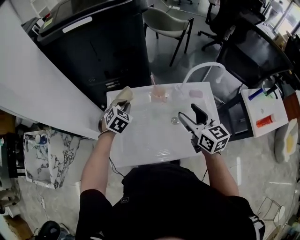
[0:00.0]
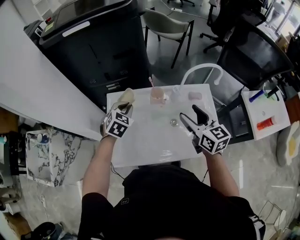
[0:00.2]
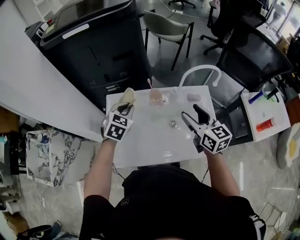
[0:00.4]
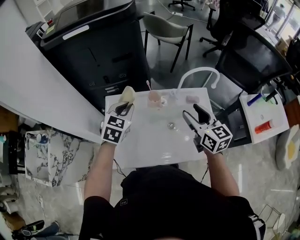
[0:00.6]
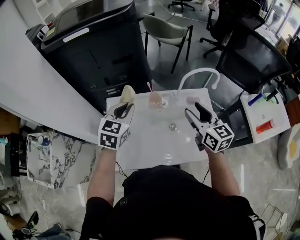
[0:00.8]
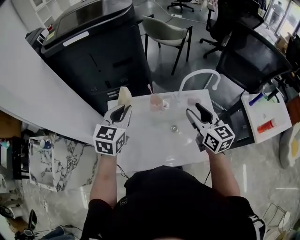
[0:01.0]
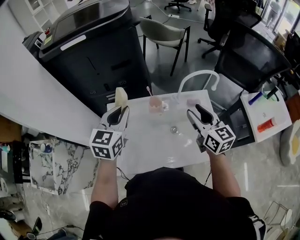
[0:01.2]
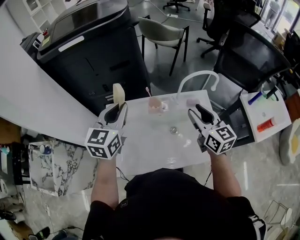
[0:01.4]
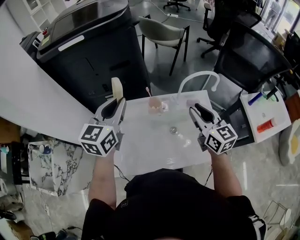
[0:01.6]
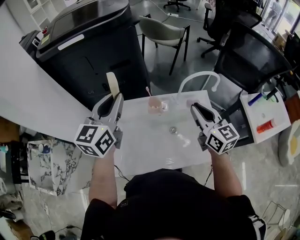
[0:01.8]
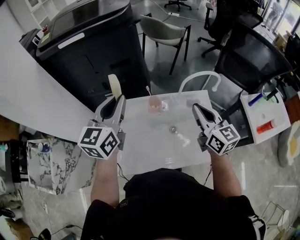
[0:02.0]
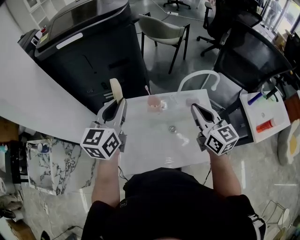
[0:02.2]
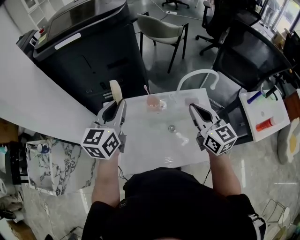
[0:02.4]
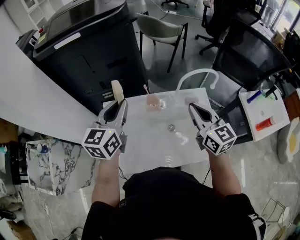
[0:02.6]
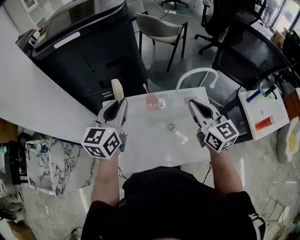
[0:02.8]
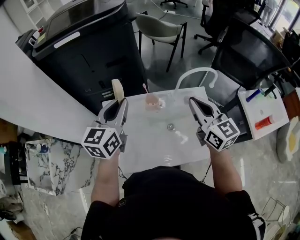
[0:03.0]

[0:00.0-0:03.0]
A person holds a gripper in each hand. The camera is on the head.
0:00.0 to 0:01.6: The right gripper goes some 5 cm to the right, and closes up, while the left gripper is displaced upward by roughly 25 cm, and points its fingers some 40 degrees further upward.
0:01.6 to 0:03.0: The right gripper closes up.

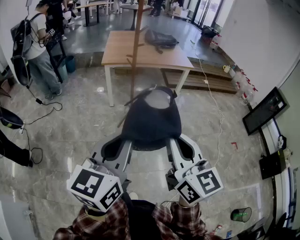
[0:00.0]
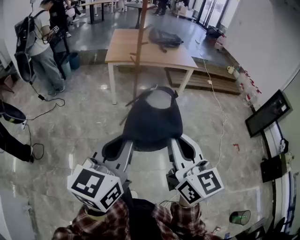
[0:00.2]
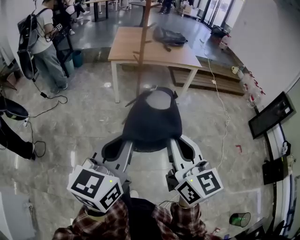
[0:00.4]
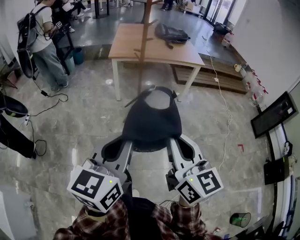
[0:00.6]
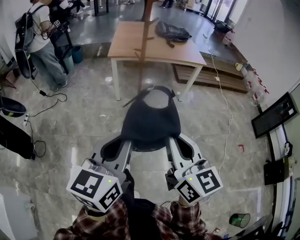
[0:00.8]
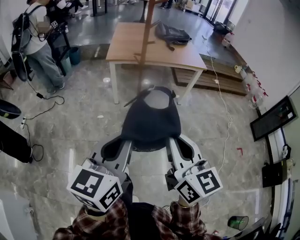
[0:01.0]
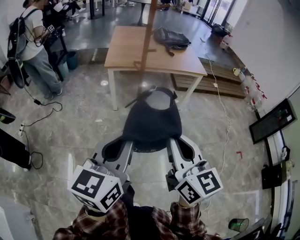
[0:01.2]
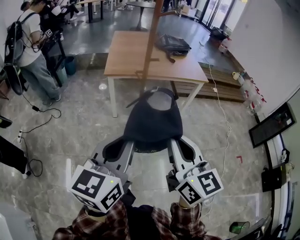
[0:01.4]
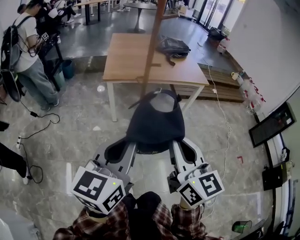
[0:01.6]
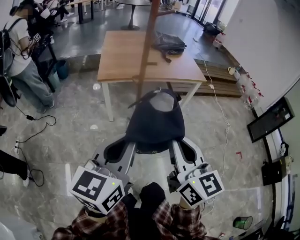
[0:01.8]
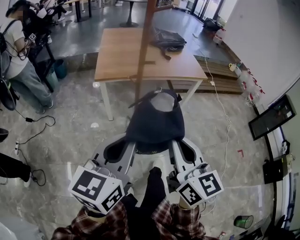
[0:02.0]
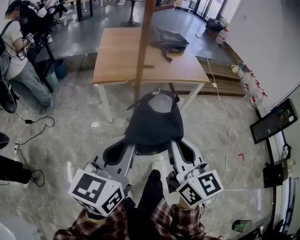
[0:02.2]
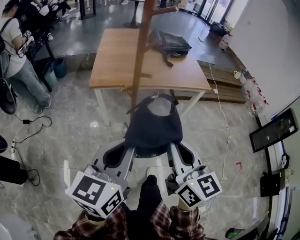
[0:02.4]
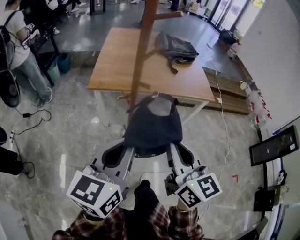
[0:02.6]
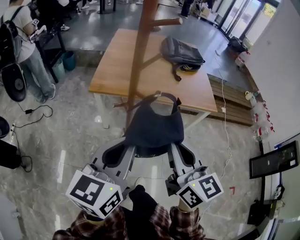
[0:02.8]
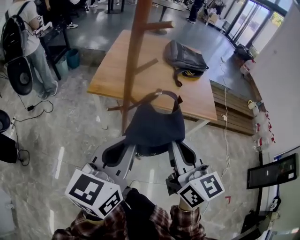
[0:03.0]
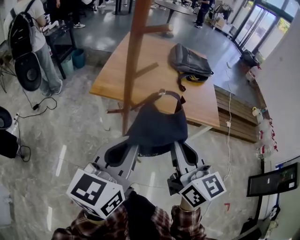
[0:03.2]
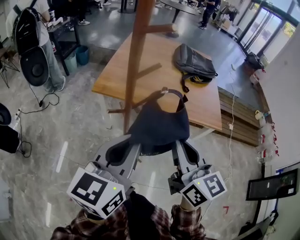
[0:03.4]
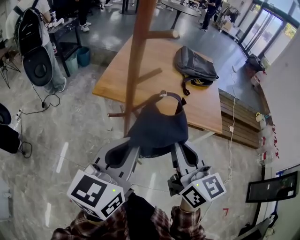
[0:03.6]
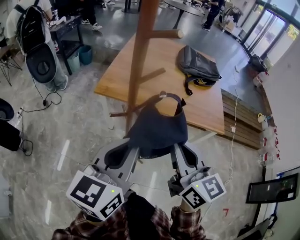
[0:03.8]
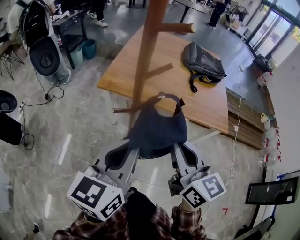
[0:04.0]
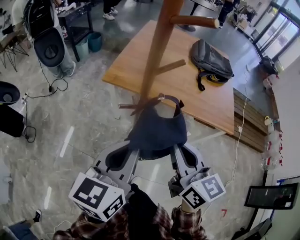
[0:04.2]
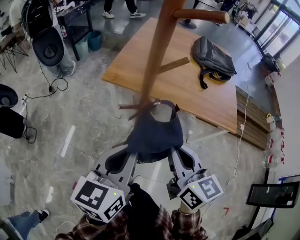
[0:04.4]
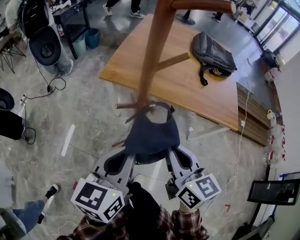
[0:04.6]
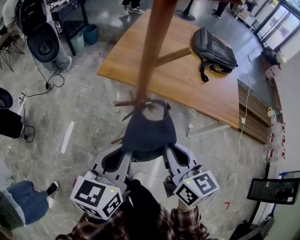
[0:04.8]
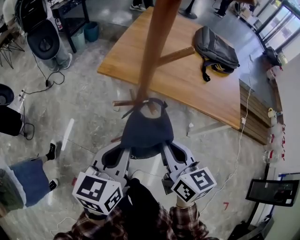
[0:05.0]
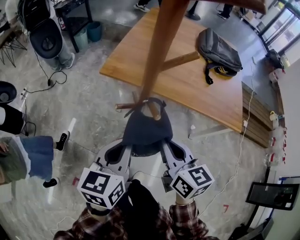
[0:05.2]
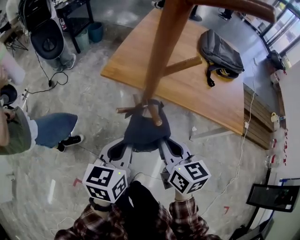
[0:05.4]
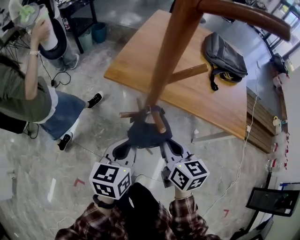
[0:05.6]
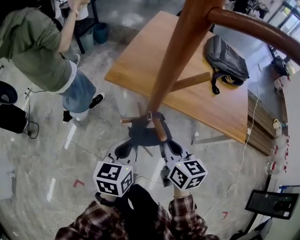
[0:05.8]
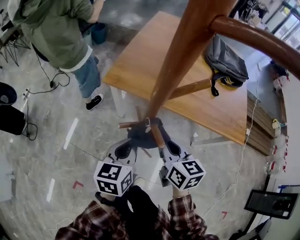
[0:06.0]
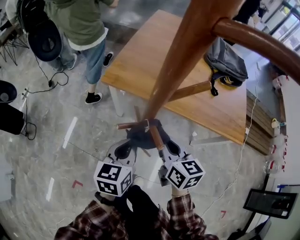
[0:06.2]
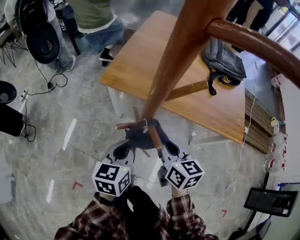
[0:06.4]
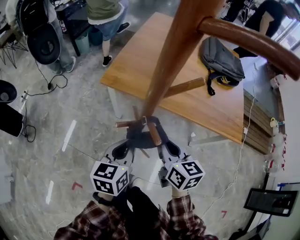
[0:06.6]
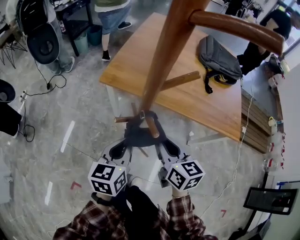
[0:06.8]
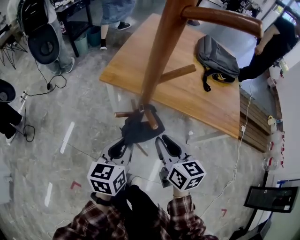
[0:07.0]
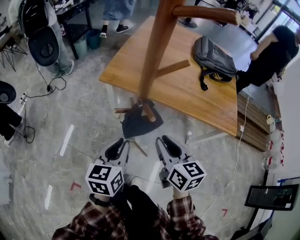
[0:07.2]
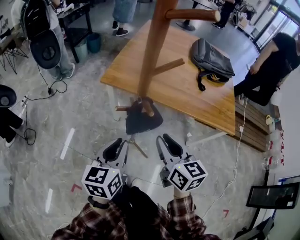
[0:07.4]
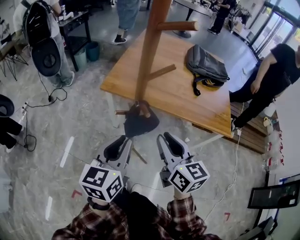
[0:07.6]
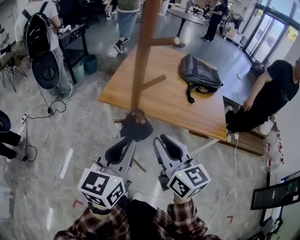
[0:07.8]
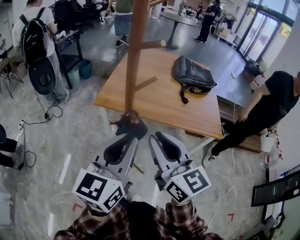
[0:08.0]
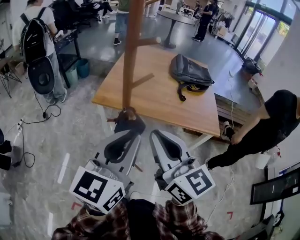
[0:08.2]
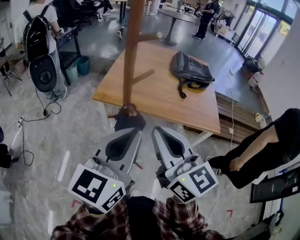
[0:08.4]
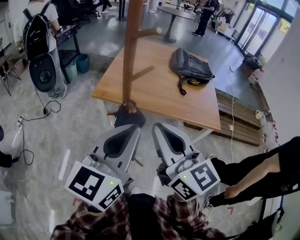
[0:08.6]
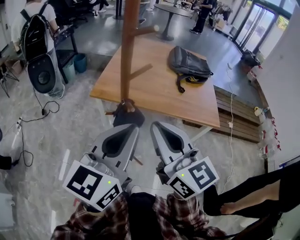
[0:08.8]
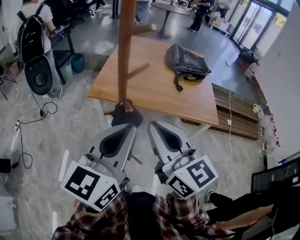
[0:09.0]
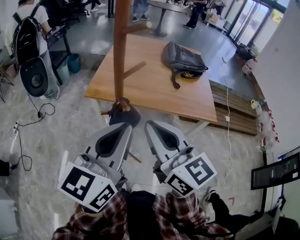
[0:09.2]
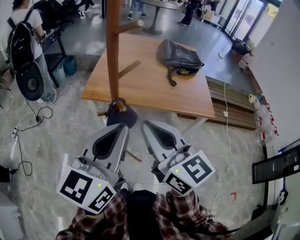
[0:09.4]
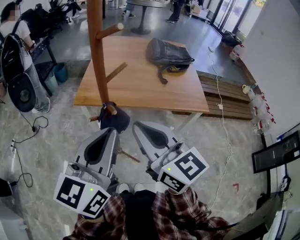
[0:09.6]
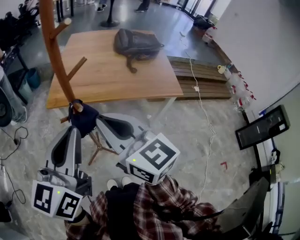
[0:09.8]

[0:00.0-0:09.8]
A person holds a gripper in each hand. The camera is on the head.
0:00.0 to 0:01.4: Both grippers move forward, approximately 25 cm.
0:01.4 to 0:02.8: Both grippers travel together forward, roughly 30 cm.
0:02.8 to 0:04.2: The right gripper moves forward, about 10 cm; the left gripper goes about 5 cm forward.
0:04.2 to 0:05.6: Both grippers move downward and forward, about 20 cm.
0:05.6 to 0:07.0: The grippers make only small movements.
0:07.0 to 0:08.4: Both grippers travel together upward and backward, roughly 25 cm. The right gripper turns by some 30 degrees, while the left gripper swivels about 30 degrees.
0:08.4 to 0:09.8: The left gripper moves to the left, approximately 5 cm.

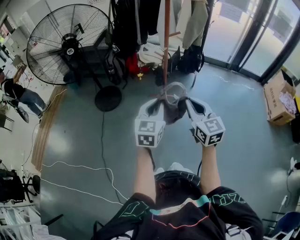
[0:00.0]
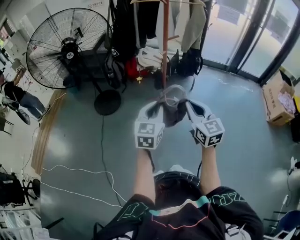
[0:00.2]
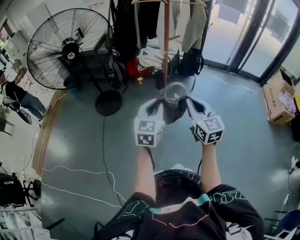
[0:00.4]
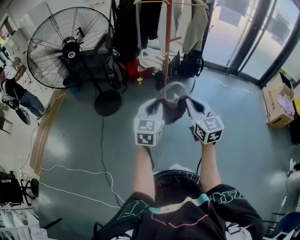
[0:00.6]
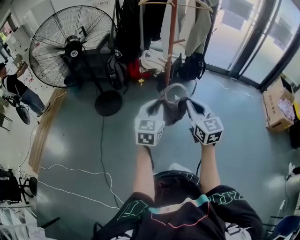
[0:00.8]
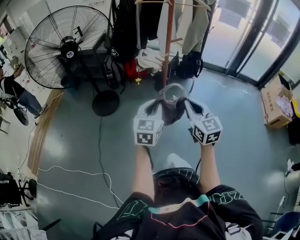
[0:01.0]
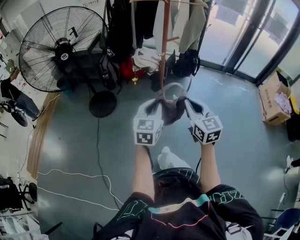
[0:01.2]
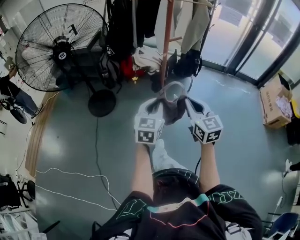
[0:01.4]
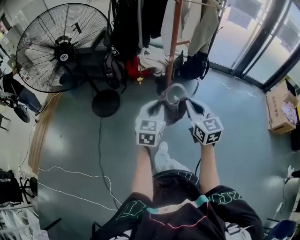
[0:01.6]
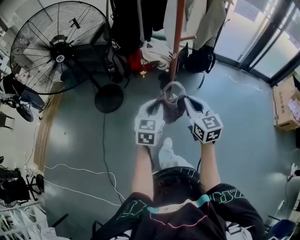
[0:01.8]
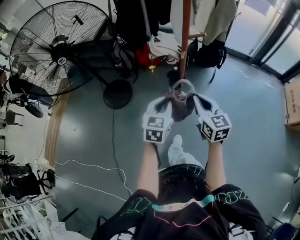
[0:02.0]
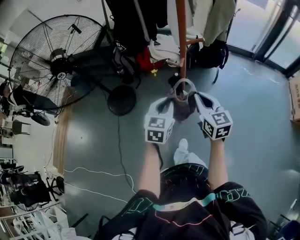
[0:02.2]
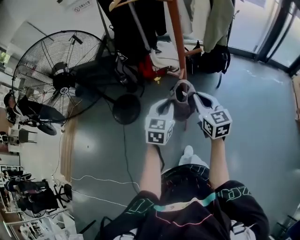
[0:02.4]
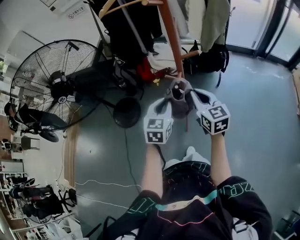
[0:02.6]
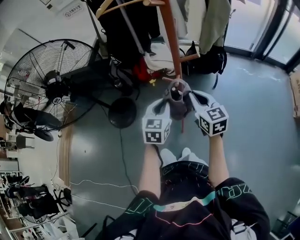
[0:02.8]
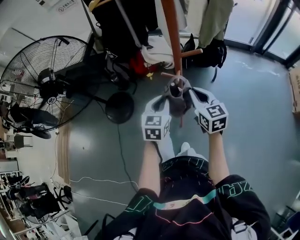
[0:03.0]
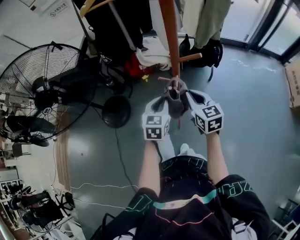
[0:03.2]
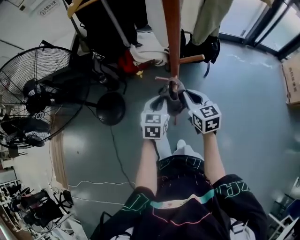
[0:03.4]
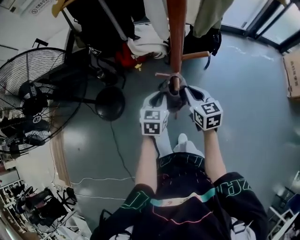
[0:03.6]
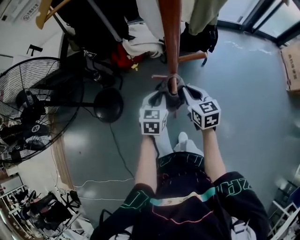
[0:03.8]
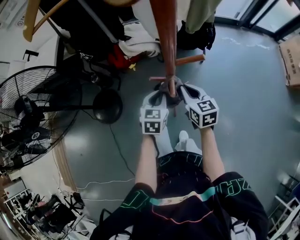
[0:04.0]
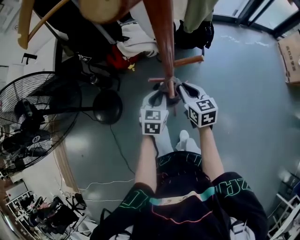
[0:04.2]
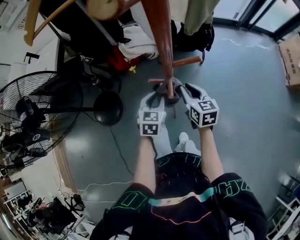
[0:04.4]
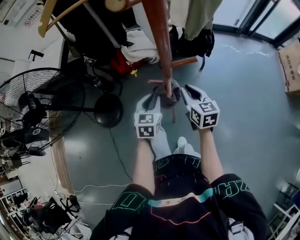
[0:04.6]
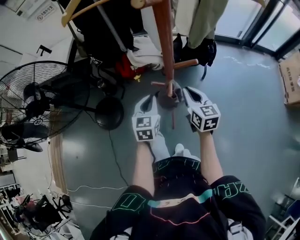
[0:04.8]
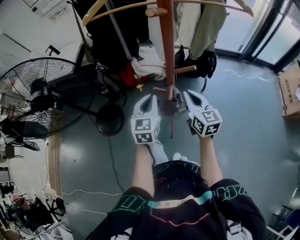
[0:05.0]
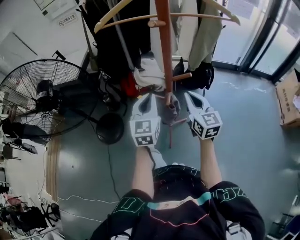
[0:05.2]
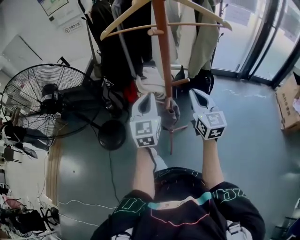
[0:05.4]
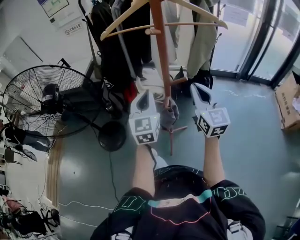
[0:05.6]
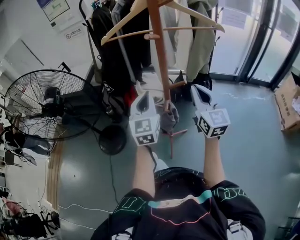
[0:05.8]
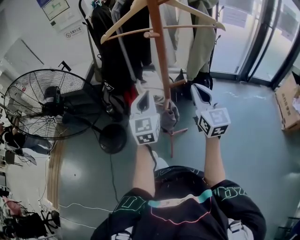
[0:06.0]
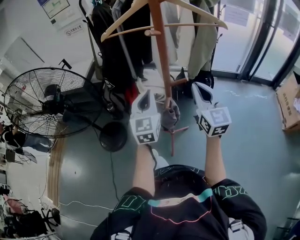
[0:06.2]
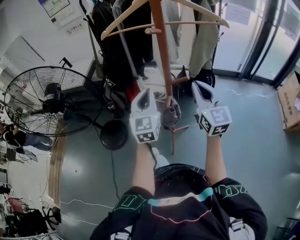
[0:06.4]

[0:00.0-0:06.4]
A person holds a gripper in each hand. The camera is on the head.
0:00.0 to 0:01.6: The two grippers go approximately 15 cm forward.
0:01.6 to 0:03.2: Both grippers move forward and downward, about 30 cm.
0:04.8 to 0:06.4: The two grippers go about 20 cm upward. The right gripper turns by approximately 30 degrees. Meanwhile the left gripper changes its angle by some 30 degrees.

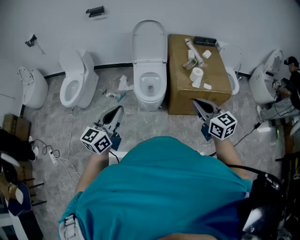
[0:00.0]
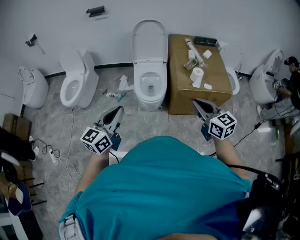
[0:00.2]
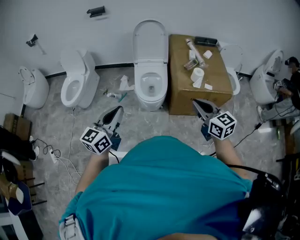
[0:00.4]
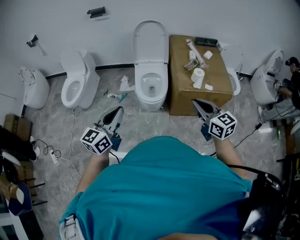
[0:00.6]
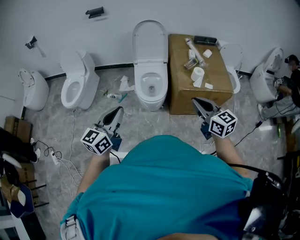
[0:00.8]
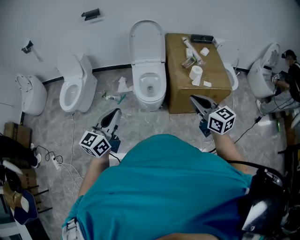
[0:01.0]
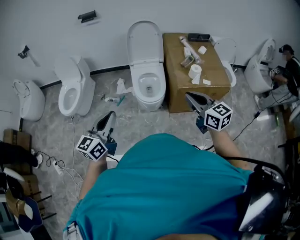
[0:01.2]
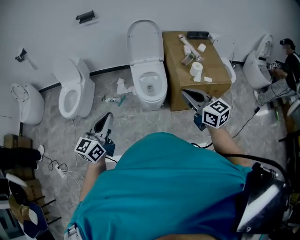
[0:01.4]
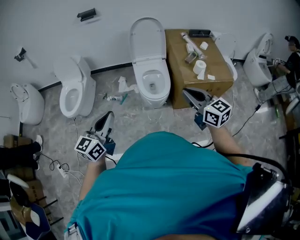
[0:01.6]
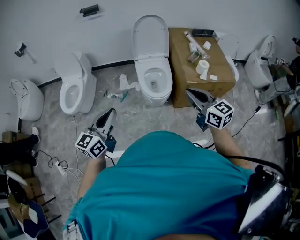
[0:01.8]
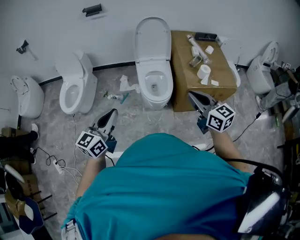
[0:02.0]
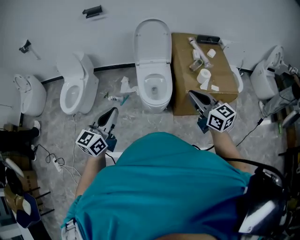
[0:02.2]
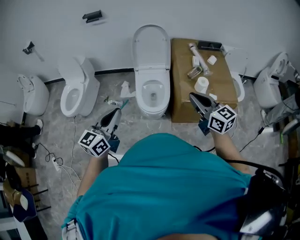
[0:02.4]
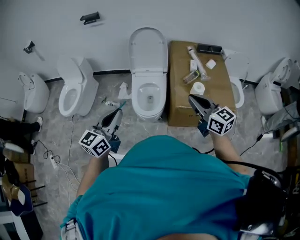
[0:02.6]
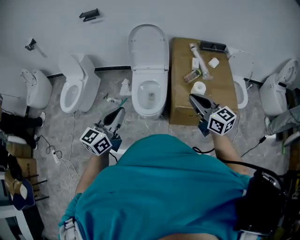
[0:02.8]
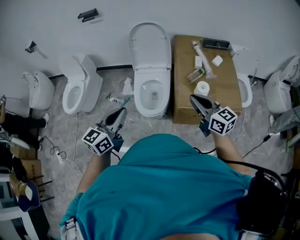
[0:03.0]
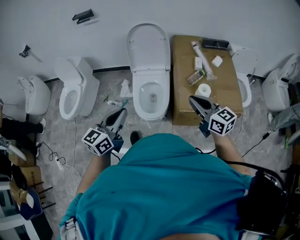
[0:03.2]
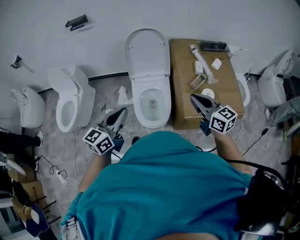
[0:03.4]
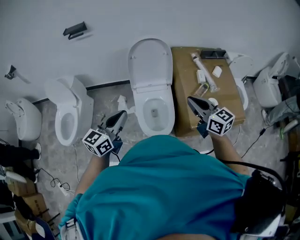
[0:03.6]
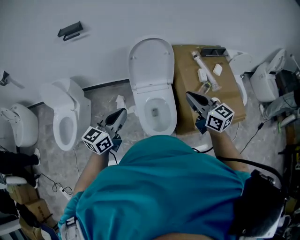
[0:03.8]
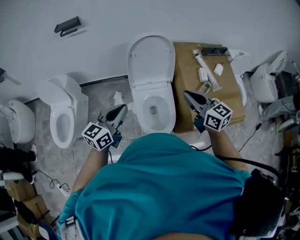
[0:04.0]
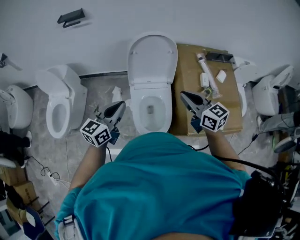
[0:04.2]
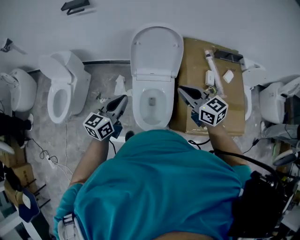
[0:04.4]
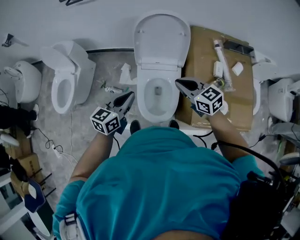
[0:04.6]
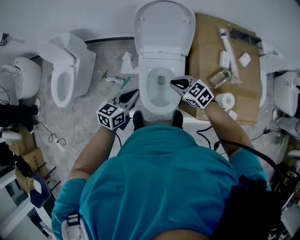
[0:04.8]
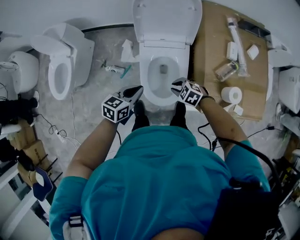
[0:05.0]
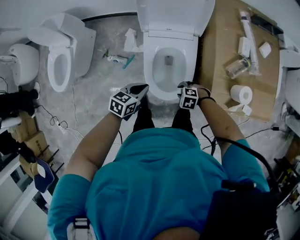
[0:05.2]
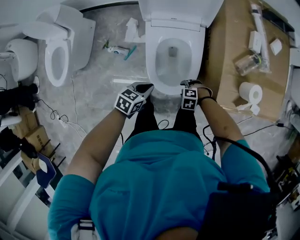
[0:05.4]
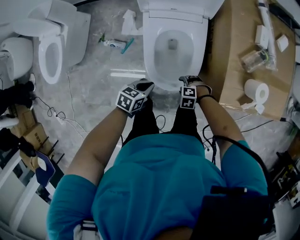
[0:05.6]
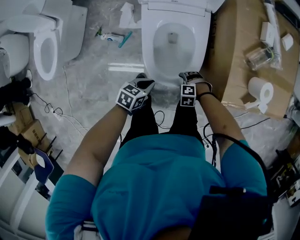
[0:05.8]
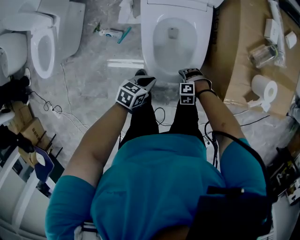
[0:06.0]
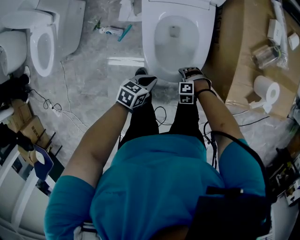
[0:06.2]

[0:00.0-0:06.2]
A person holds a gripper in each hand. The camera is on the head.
0:00.0 to 0:01.6: Both grippers move to the left, approximately 15 cm.
0:01.6 to 0:03.2: The left gripper is displaced to the right and forward by about 30 cm; the right gripper travels forward and to the right by approximately 30 cm.
0:03.2 to 0:04.6: The right gripper travels forward and to the left by about 30 cm, and rotates about 20 degrees. The left gripper is displaced forward and downward by approximately 30 cm.
0:04.6 to 0:06.2: The two grippers go some 50 cm downward. The right gripper points its fingers roughly 60 degrees further downward, and opens; the left gripper rotates roughly 40 degrees.
